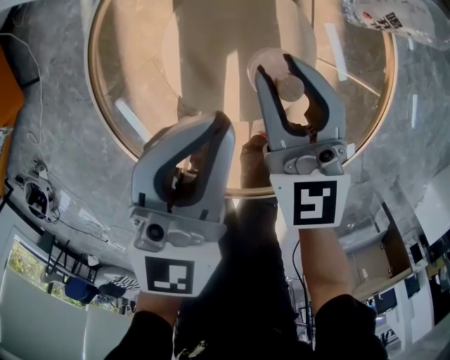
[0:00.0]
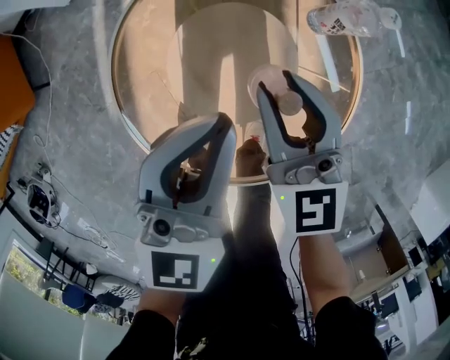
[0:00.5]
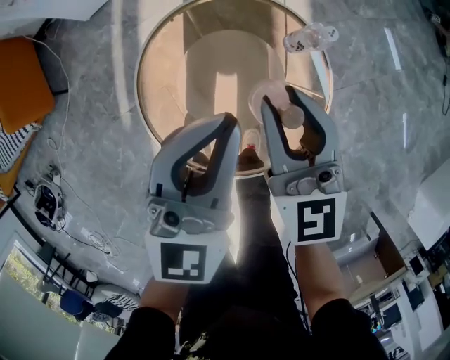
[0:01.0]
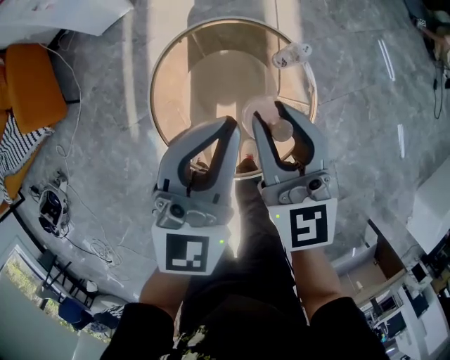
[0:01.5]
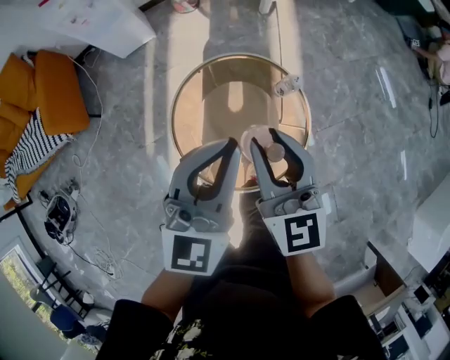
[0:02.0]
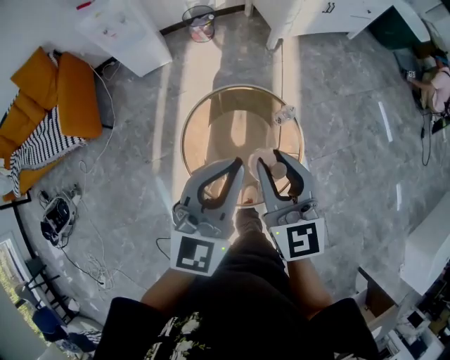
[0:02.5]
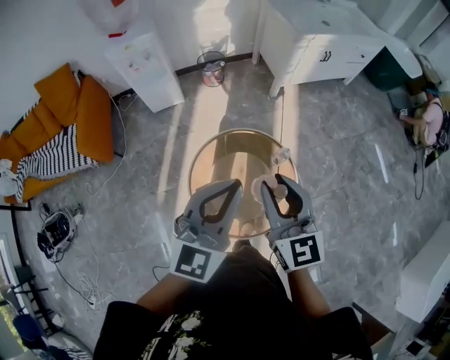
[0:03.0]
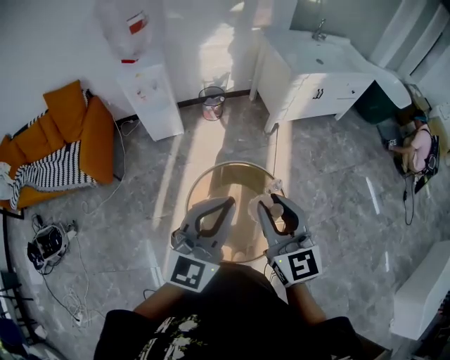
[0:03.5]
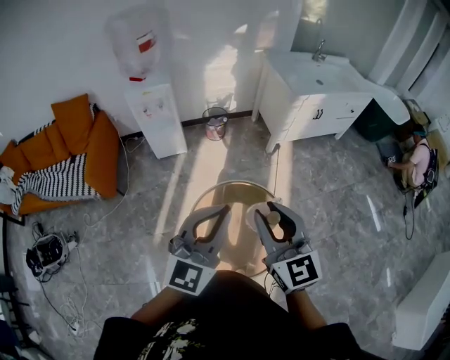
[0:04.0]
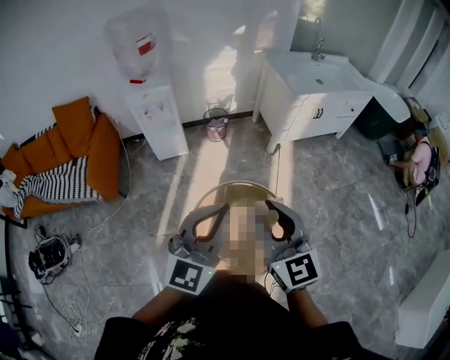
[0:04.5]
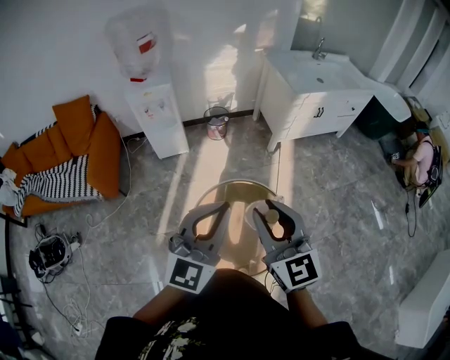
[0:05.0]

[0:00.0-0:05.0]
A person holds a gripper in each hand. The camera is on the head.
0:00.0 to 0:02.5: Both grippers travel together upward, roughly 60 cm.
0:02.5 to 0:05.0: The two grippers go about 20 cm upward.

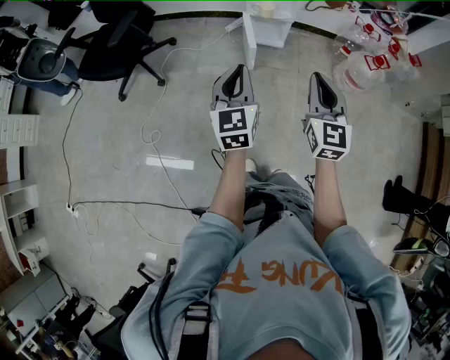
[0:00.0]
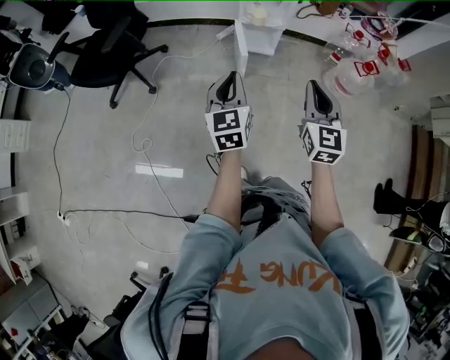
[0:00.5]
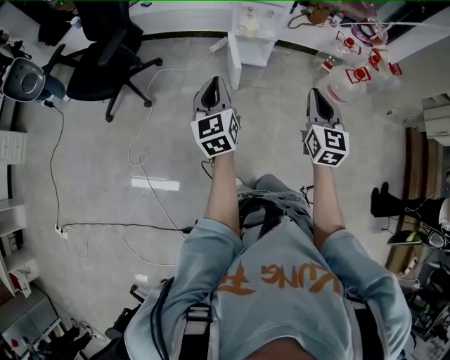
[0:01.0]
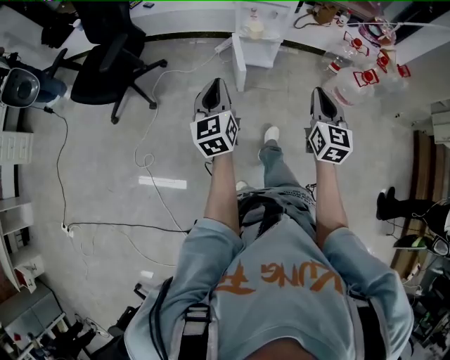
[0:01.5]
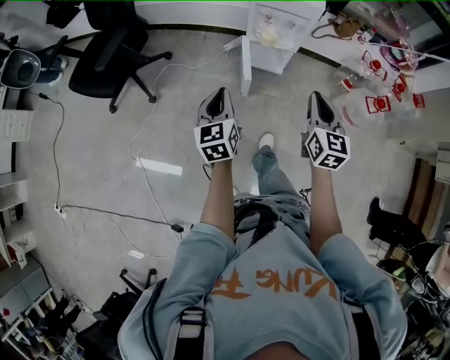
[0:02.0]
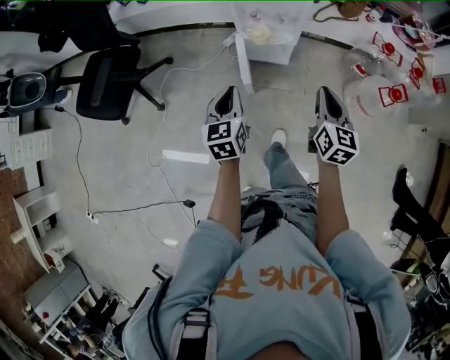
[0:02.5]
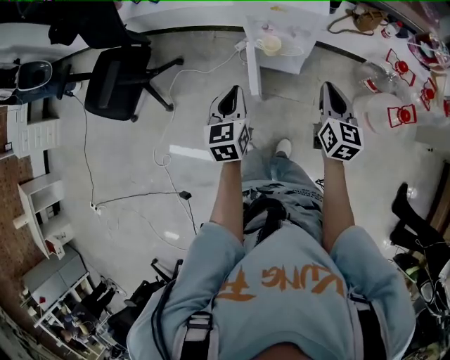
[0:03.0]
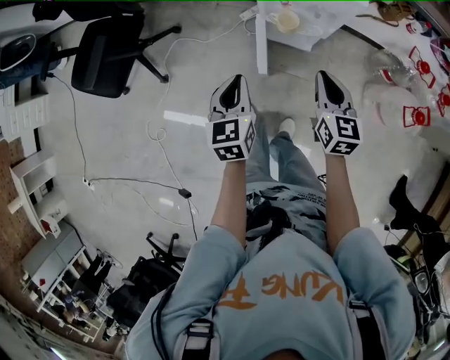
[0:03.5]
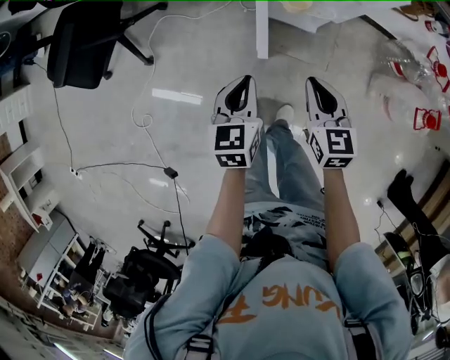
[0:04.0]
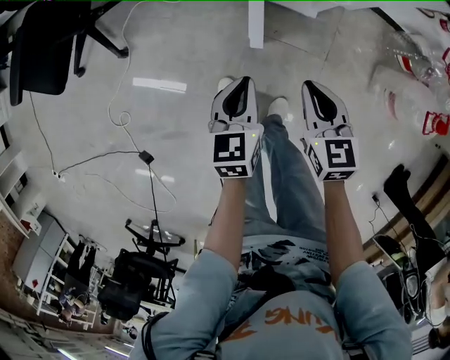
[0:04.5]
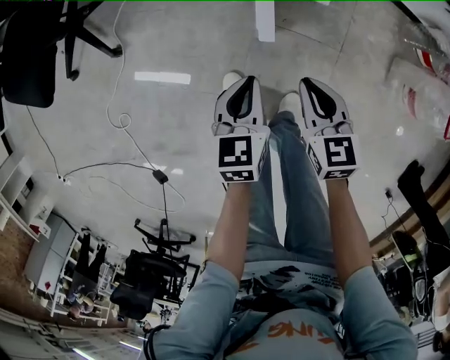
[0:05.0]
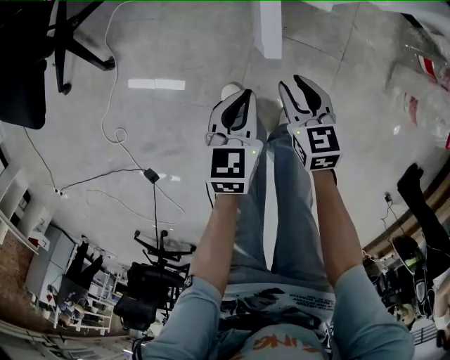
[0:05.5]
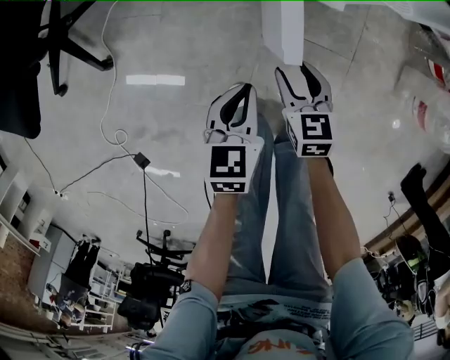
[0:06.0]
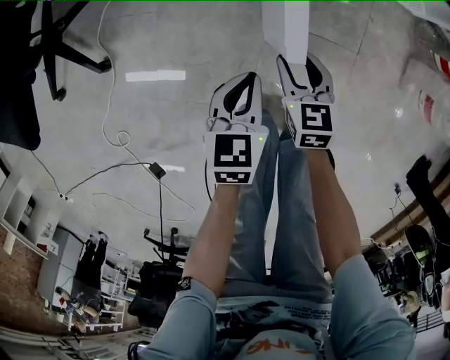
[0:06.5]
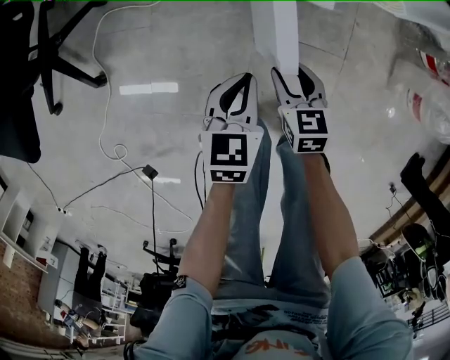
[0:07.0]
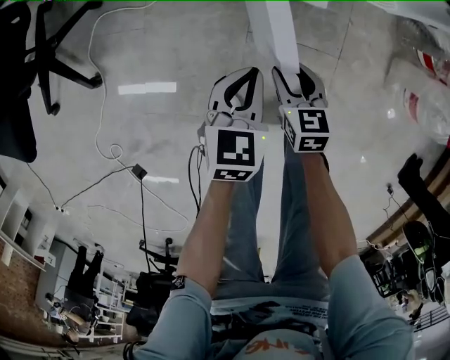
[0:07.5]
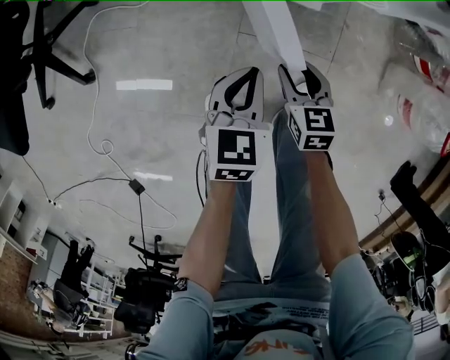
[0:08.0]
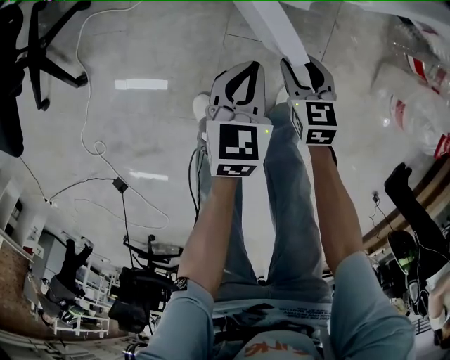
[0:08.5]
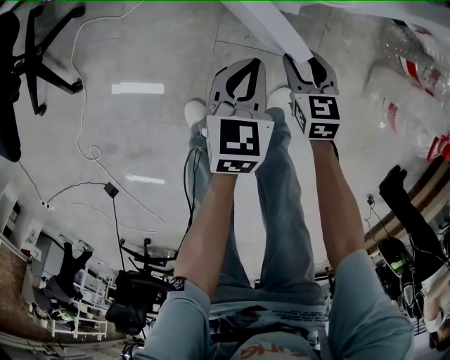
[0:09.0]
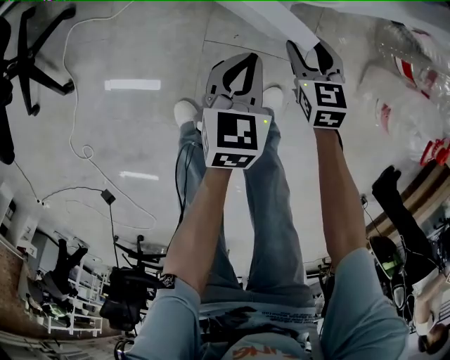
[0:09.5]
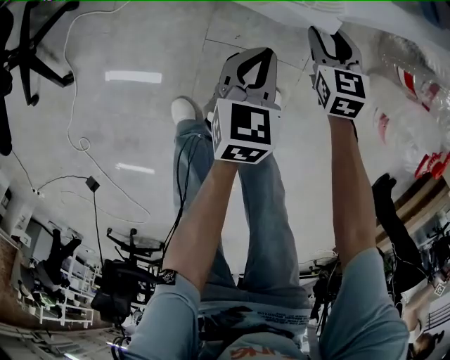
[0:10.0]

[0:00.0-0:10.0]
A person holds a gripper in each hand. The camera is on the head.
0:00.0 to 0:02.0: The right gripper moves forward, roughly 20 cm. Meanwhile the left gripper heads forward and downward, covering roughly 20 cm.
0:02.0 to 0:04.0: The right gripper travels downward and forward by about 30 cm, and rotates roughly 30 degrees; the left gripper shifts roughly 25 cm downward, forward and to the right.
0:04.0 to 0:06.0: The grippers both shift downward by some 30 cm. The right gripper opens up.
0:06.0 to 0:08.0: The right gripper travels to the right by roughly 10 cm, while the left gripper heads to the right and forward, covering roughly 10 cm.
0:08.0 to 0:10.0: The right gripper moves forward and to the right, approximately 25 cm. Meanwhile the left gripper heads to the right and forward, covering approximately 15 cm.

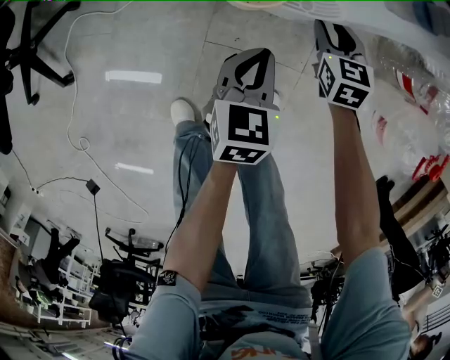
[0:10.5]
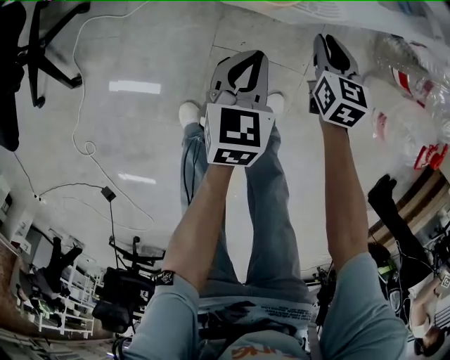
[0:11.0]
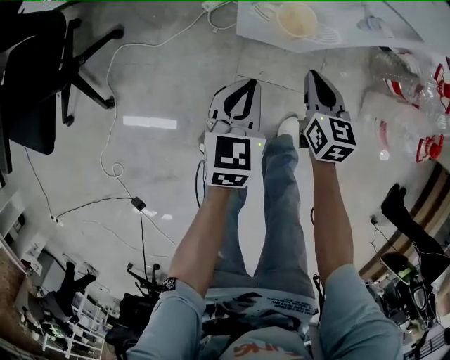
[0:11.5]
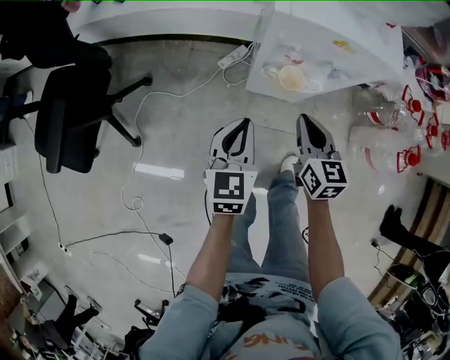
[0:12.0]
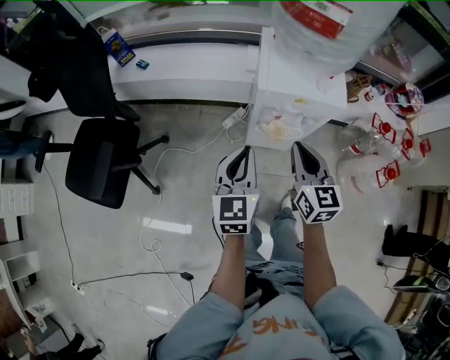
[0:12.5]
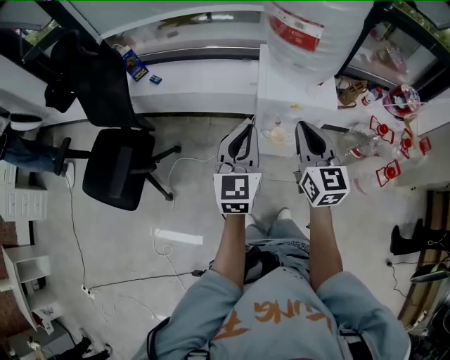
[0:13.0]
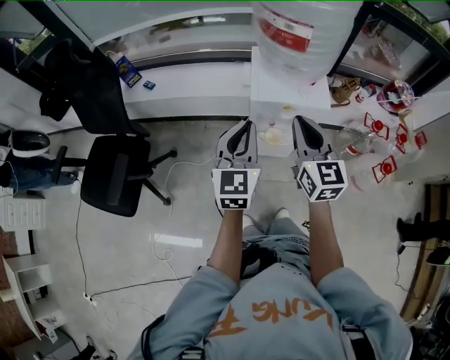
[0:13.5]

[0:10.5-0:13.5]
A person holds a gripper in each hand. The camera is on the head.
0:10.5 to 0:12.0: The left gripper heads upward and to the left, covering roughly 35 cm. The right gripper moves upward, to the left and backward, some 40 cm, changes its angle by approximately 20 degrees, and closes.
0:12.0 to 0:13.5: Both grippers move upward, roughly 30 cm. The right gripper swivels approximately 20 degrees, while the left gripper swivels some 20 degrees.

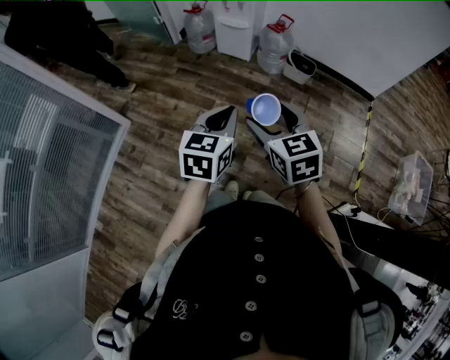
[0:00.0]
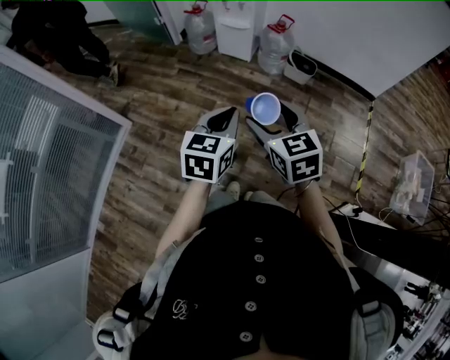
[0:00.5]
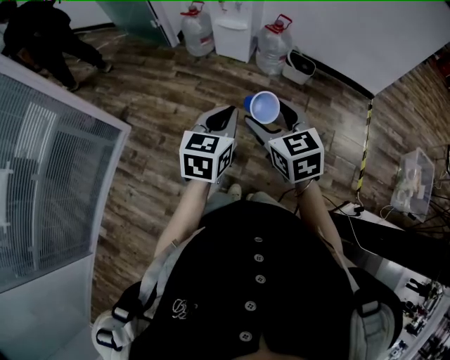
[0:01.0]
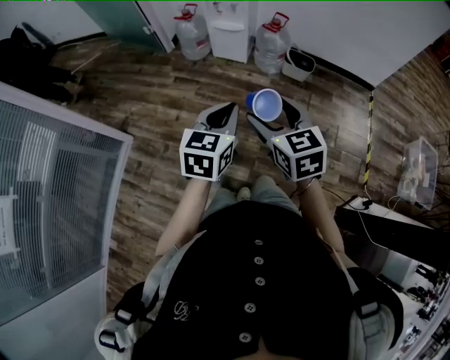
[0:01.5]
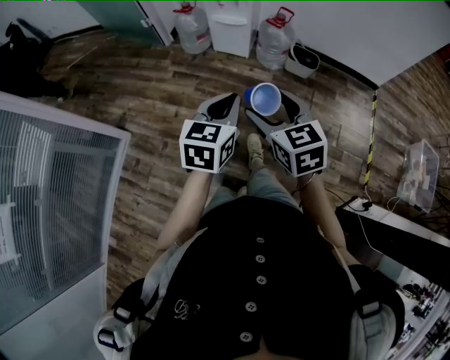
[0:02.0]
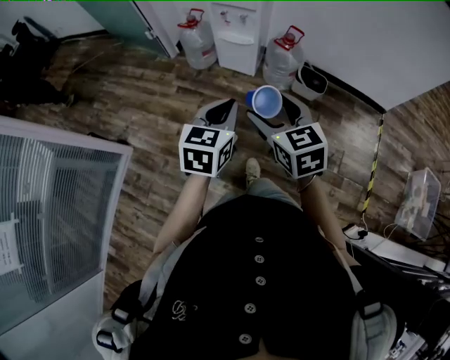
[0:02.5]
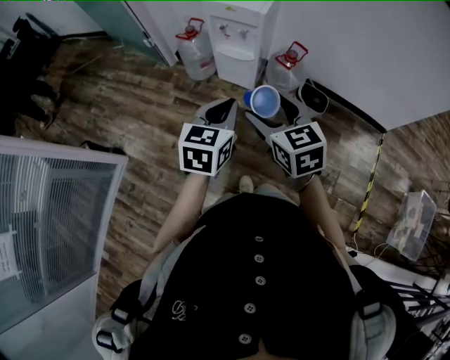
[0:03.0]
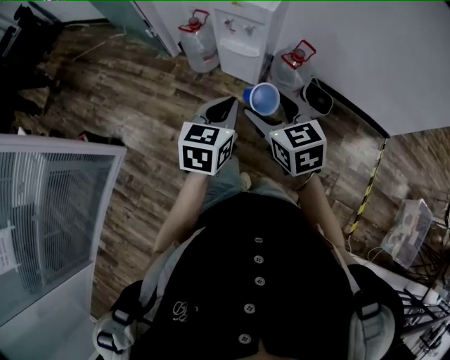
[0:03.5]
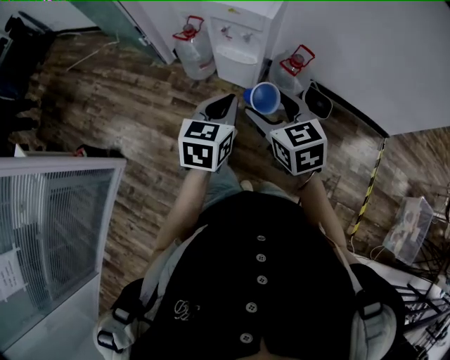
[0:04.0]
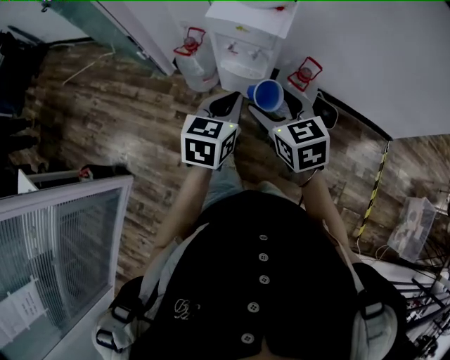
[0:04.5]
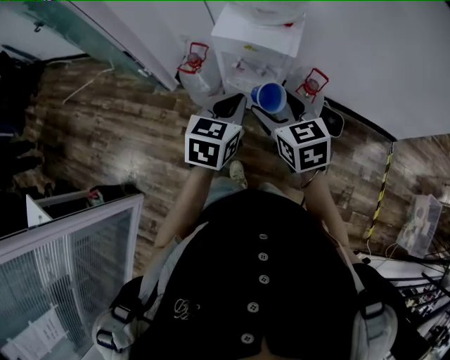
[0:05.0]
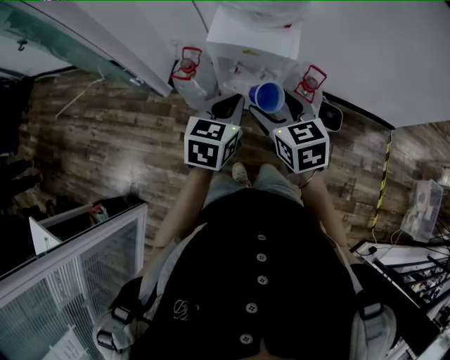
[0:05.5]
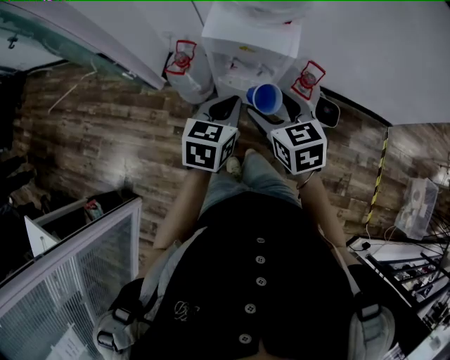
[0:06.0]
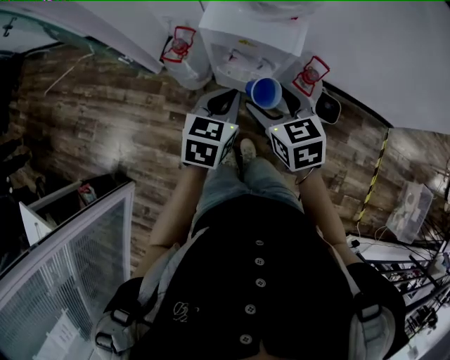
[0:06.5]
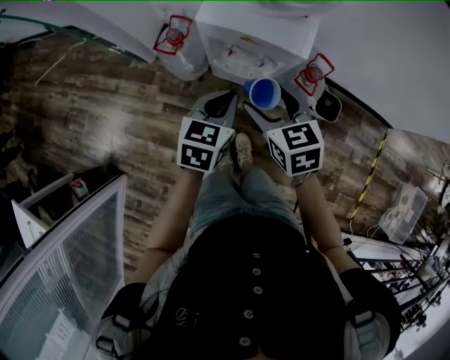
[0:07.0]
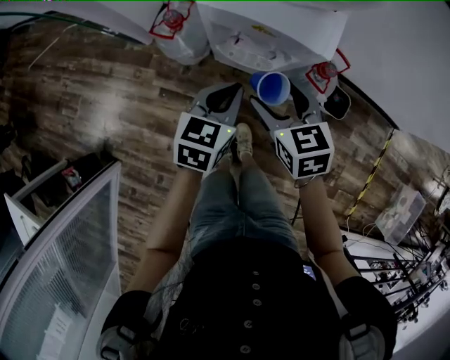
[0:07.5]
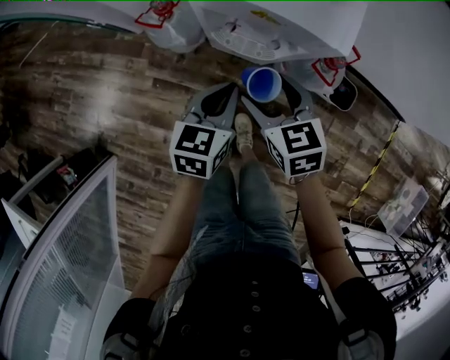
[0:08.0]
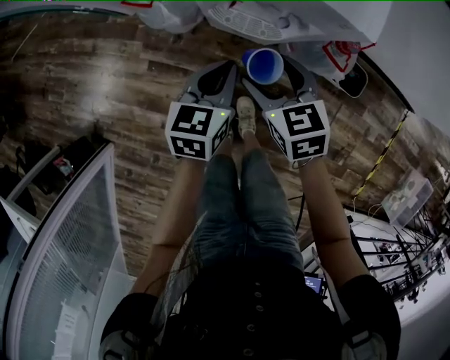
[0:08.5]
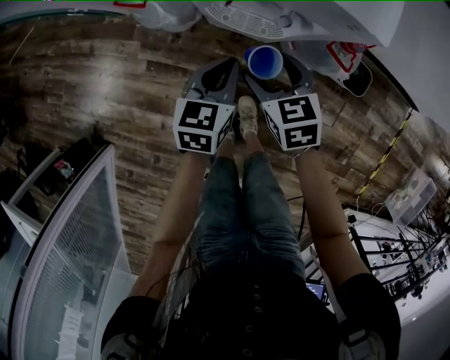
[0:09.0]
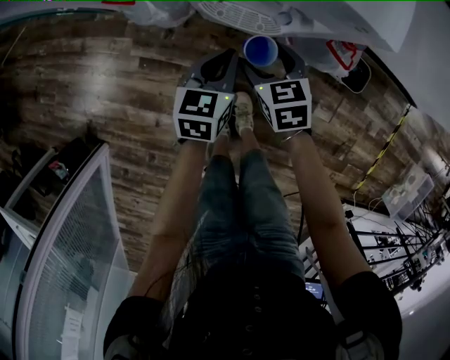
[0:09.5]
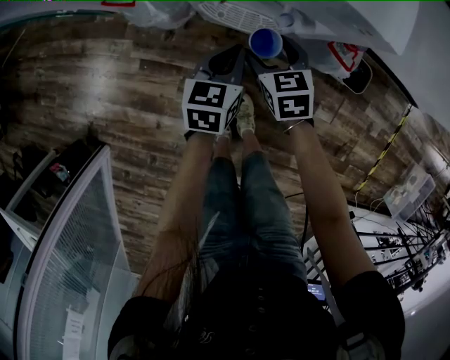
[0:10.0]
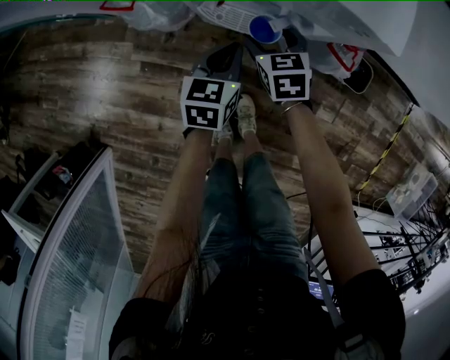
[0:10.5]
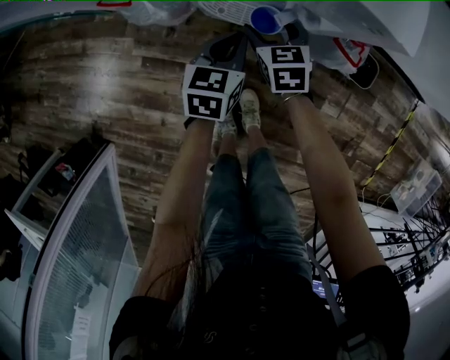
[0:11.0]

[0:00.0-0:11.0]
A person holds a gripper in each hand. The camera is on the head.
0:00.0 to 0:02.0: The grippers both shift forward by some 10 cm.
0:02.0 to 0:03.5: Both grippers move forward, approximately 30 cm.
0:03.5 to 0:05.5: Both grippers move forward, approximately 30 cm.
0:05.5 to 0:07.5: The two grippers go roughly 15 cm downward and forward.
0:07.5 to 0:09.0: The two grippers go approximately 15 cm downward.
0:09.0 to 0:11.0: The left gripper moves downward and forward, about 10 cm; the right gripper goes approximately 15 cm forward and downward.
